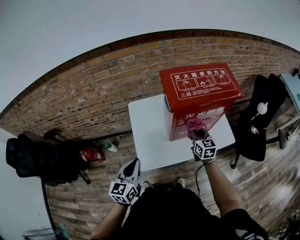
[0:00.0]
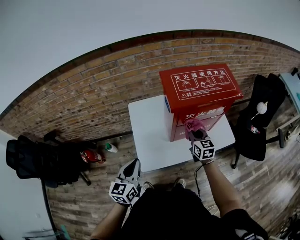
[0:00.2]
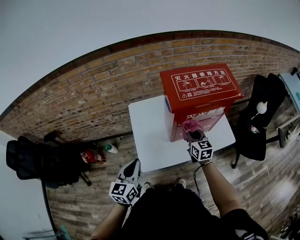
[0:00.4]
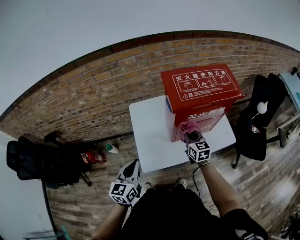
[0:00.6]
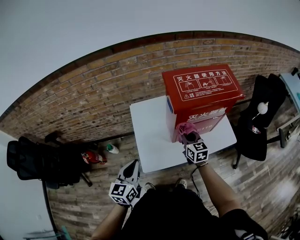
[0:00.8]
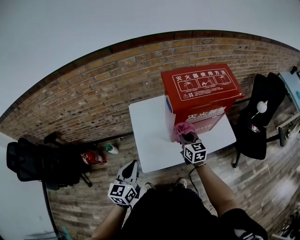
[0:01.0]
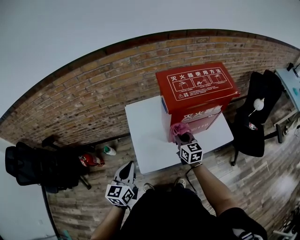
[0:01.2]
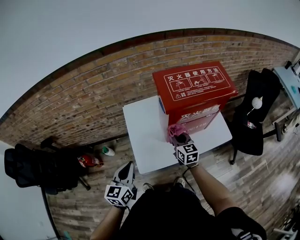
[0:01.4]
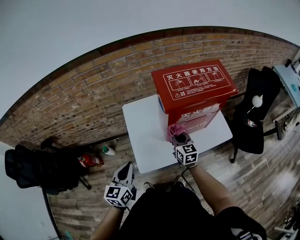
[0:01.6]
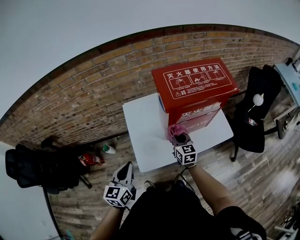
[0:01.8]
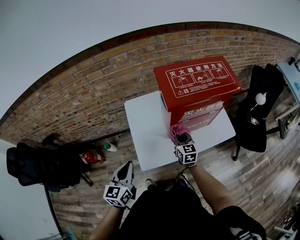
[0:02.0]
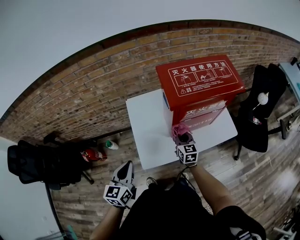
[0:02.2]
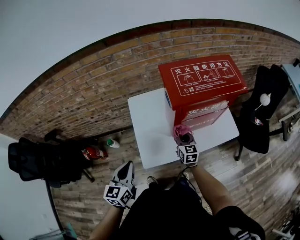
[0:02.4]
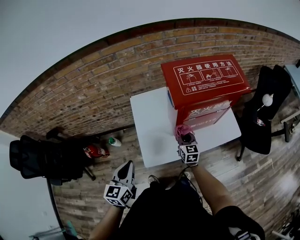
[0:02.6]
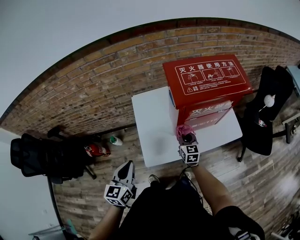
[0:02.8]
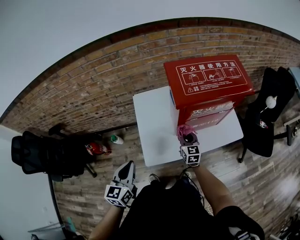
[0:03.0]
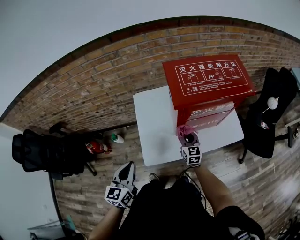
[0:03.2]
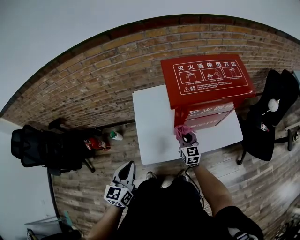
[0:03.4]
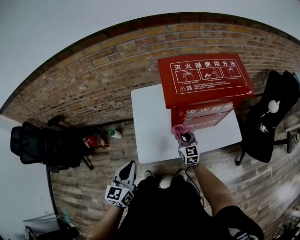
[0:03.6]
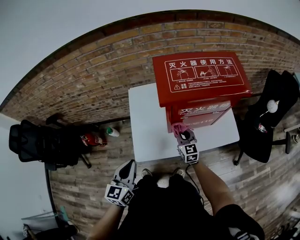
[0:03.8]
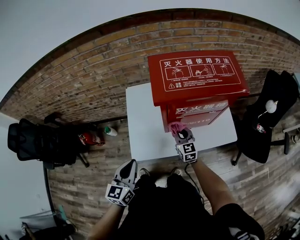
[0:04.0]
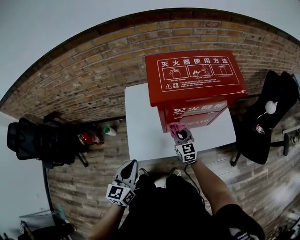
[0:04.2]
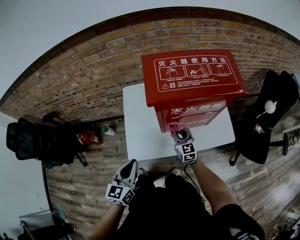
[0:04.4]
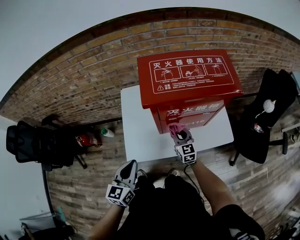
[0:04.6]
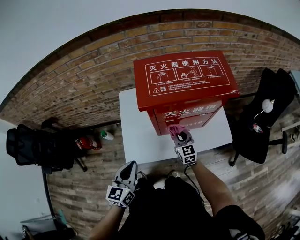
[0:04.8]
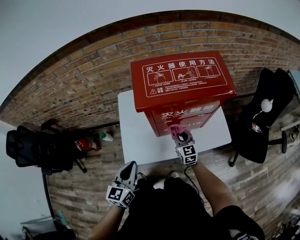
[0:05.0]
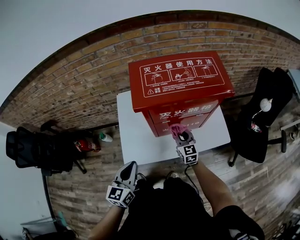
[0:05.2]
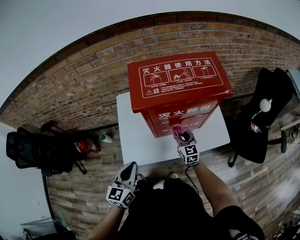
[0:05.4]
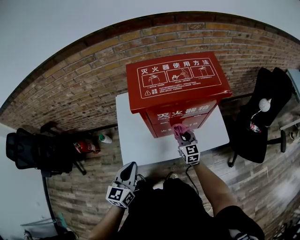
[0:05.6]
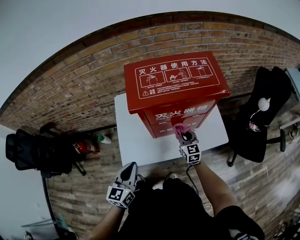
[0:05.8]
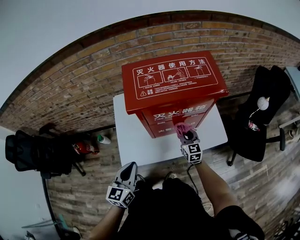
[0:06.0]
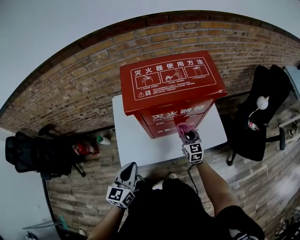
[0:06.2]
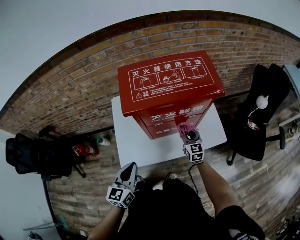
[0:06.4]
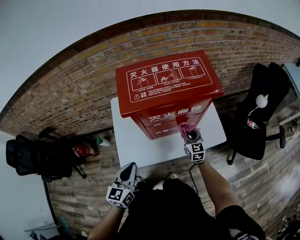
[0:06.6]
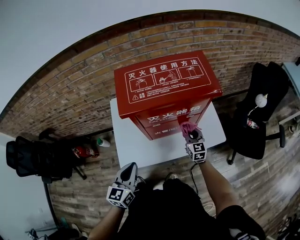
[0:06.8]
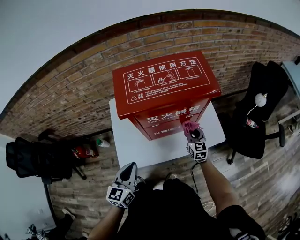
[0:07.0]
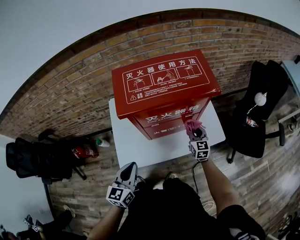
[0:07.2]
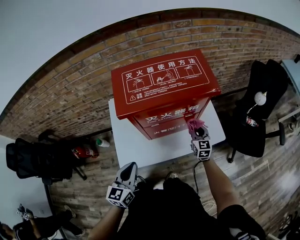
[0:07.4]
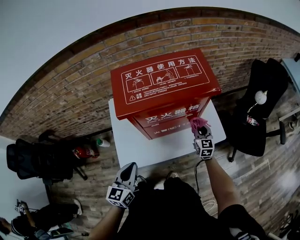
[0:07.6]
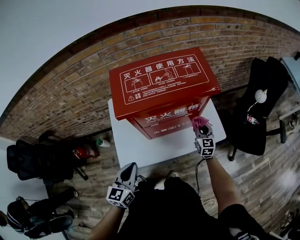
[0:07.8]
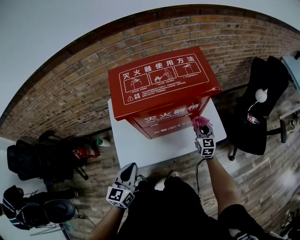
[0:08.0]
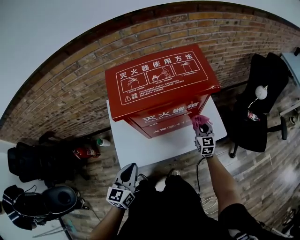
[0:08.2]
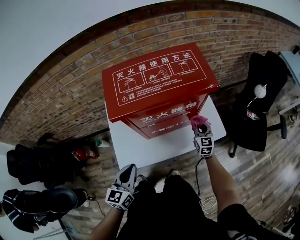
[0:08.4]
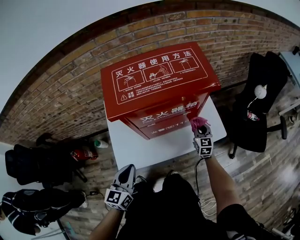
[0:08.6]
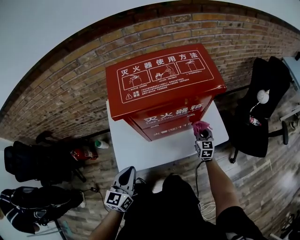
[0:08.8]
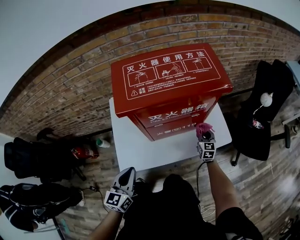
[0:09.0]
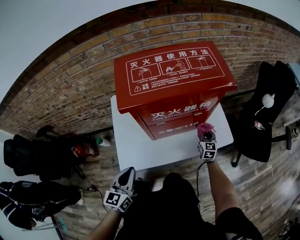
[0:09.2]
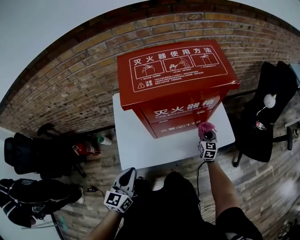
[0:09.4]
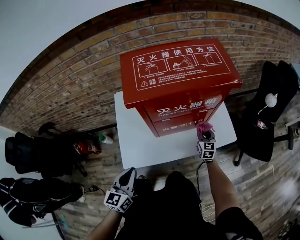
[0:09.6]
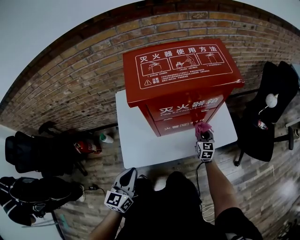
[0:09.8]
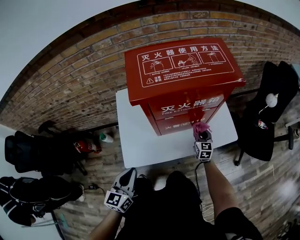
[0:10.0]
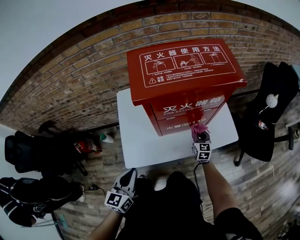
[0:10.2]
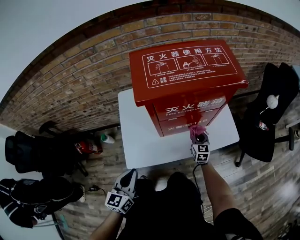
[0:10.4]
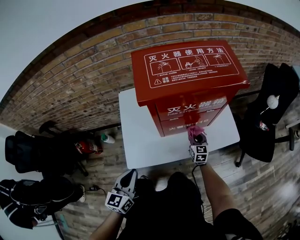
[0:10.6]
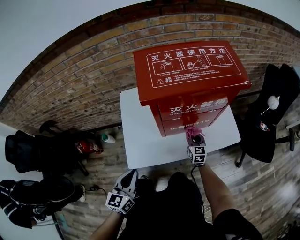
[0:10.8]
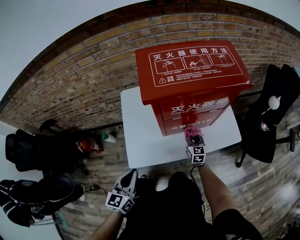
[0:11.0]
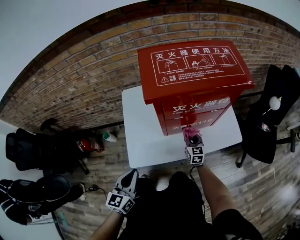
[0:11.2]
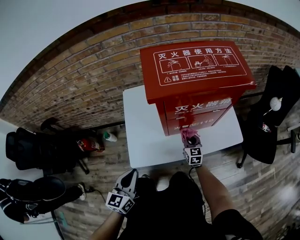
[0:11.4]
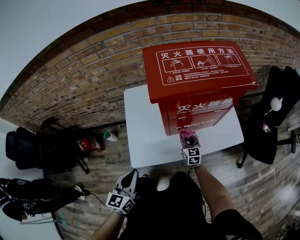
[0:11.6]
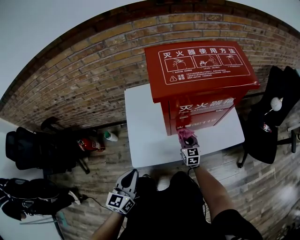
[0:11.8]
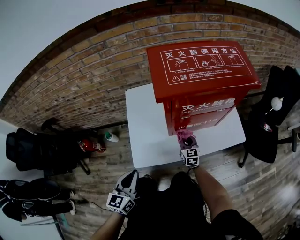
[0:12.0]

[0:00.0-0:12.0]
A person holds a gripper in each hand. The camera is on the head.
0:00.0 to 0:01.6: The right gripper moves to the left, approximately 10 cm.
0:01.6 to 0:03.0: The right gripper travels downward by approximately 10 cm.
0:03.0 to 0:04.4: The left gripper travels to the right by some 10 cm. The right gripper shifts approximately 5 cm to the right.
0:04.4 to 0:06.0: The right gripper travels to the right by some 10 cm, while the left gripper travels to the right by approximately 5 cm.
0:06.0 to 0:07.6: The right gripper heads to the right, covering approximately 10 cm.
0:07.6 to 0:09.0: The right gripper is displaced downward by about 10 cm.
0:09.0 to 0:10.4: The right gripper moves to the left, roughly 10 cm. The left gripper moves about 5 cm.
0:10.4 to 0:12.0: The right gripper moves to the left, approximately 15 cm.

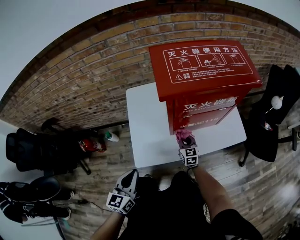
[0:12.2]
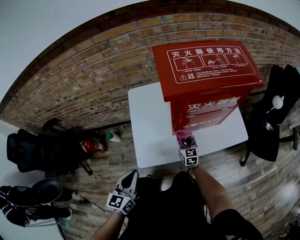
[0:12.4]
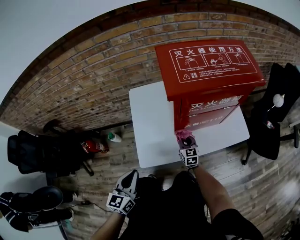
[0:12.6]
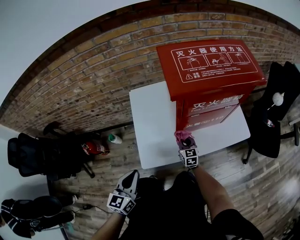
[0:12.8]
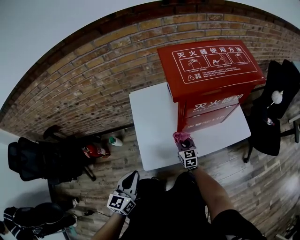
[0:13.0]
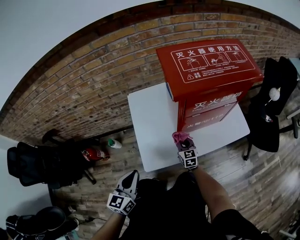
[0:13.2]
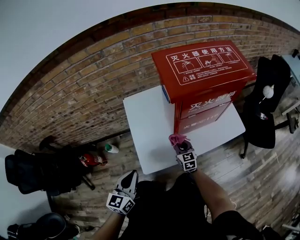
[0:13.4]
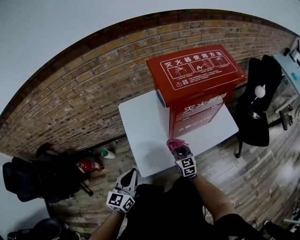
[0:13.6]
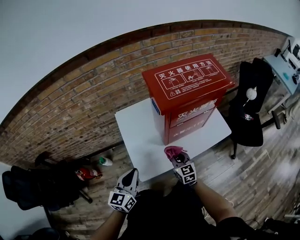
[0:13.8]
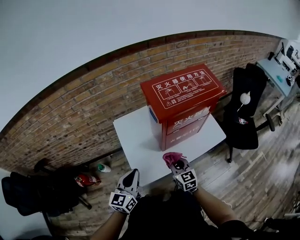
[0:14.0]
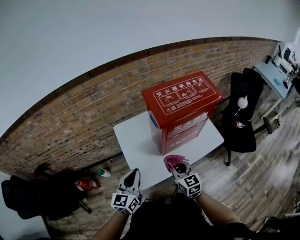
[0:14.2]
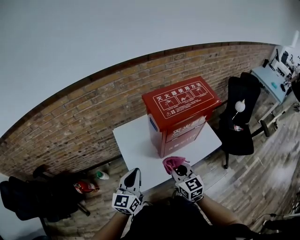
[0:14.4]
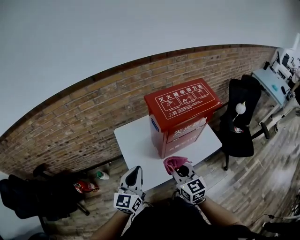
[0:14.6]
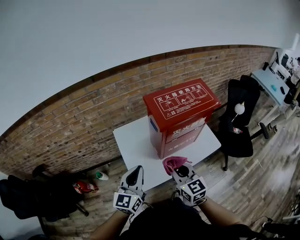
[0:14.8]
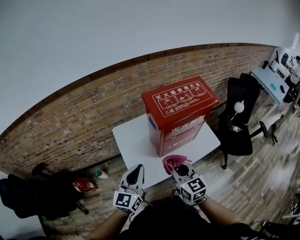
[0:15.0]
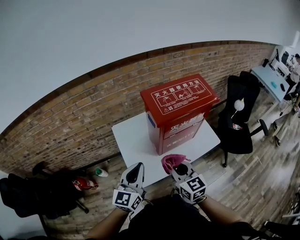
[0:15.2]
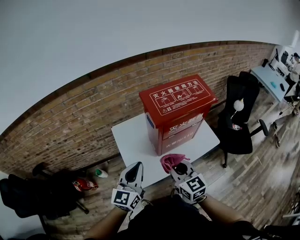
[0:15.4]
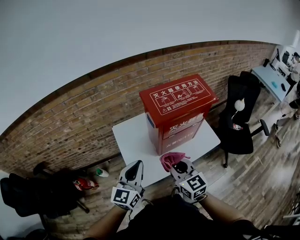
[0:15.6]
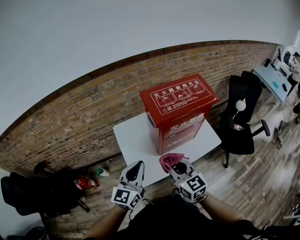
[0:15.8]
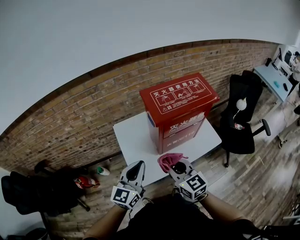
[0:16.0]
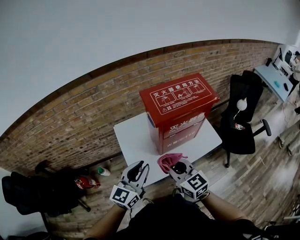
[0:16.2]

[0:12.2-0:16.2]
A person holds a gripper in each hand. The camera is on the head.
0:12.2 to 0:13.6: The right gripper heads upward, to the left and backward, covering roughly 10 cm. Meanwhile the left gripper moves some 5 cm.
0:13.6 to 0:14.8: The left gripper is displaced upward by approximately 15 cm. Meanwhile the right gripper is displaced upward by some 30 cm.
0:14.8 to 0:16.2: The grippers stay close to where they were, moving slightly.

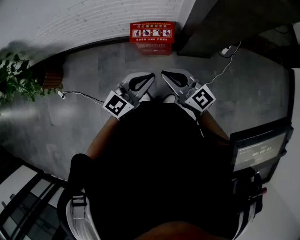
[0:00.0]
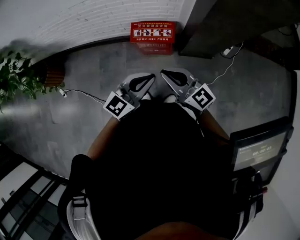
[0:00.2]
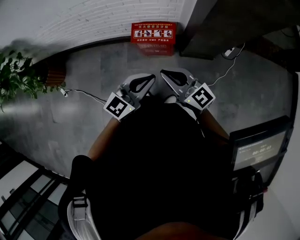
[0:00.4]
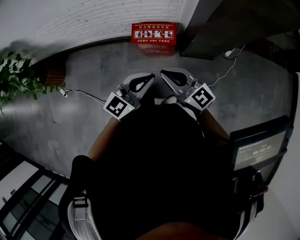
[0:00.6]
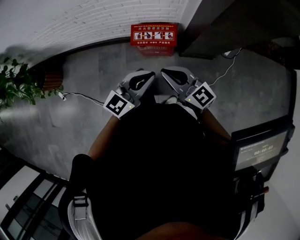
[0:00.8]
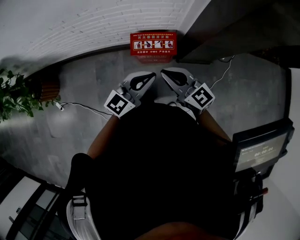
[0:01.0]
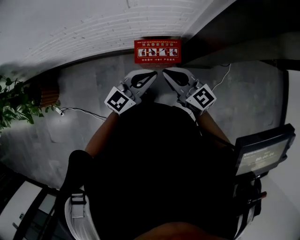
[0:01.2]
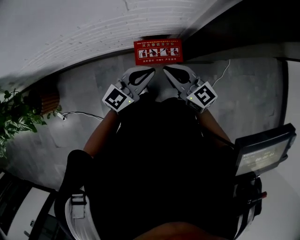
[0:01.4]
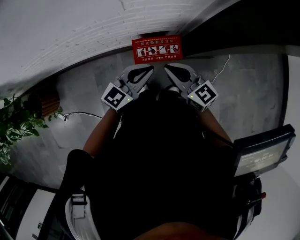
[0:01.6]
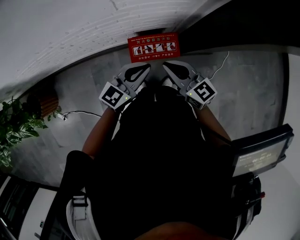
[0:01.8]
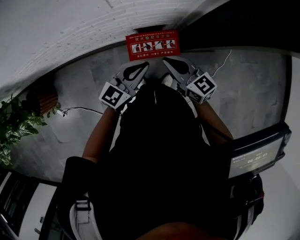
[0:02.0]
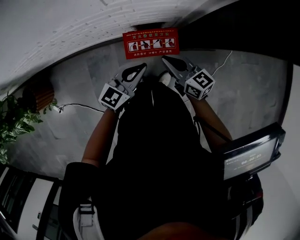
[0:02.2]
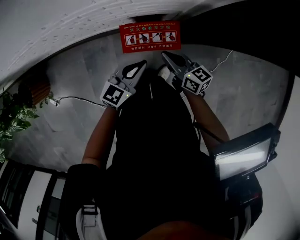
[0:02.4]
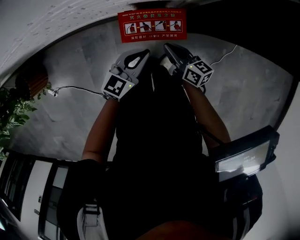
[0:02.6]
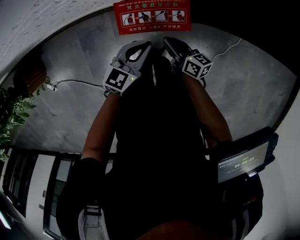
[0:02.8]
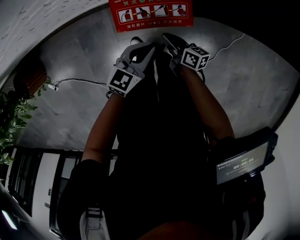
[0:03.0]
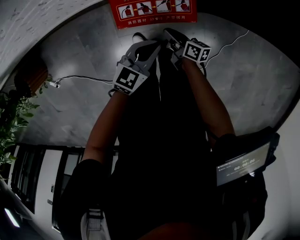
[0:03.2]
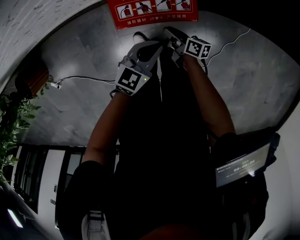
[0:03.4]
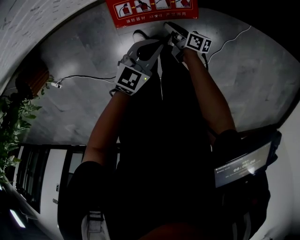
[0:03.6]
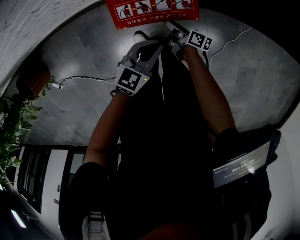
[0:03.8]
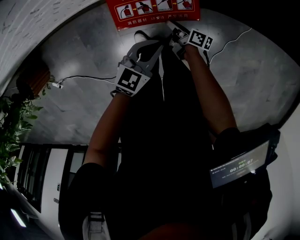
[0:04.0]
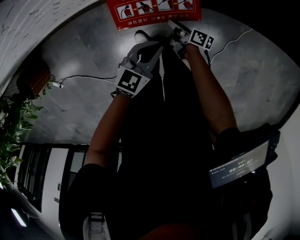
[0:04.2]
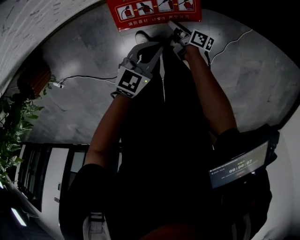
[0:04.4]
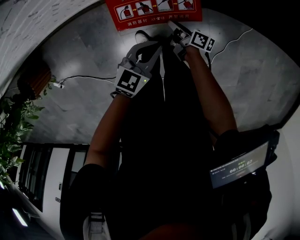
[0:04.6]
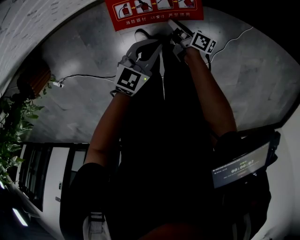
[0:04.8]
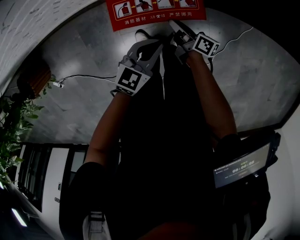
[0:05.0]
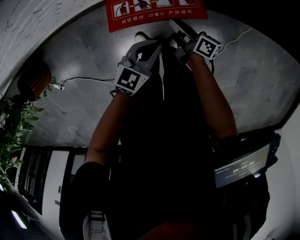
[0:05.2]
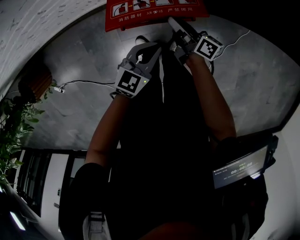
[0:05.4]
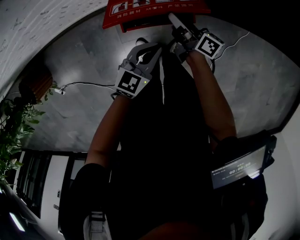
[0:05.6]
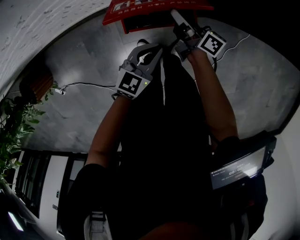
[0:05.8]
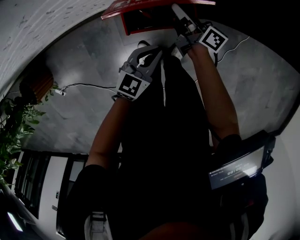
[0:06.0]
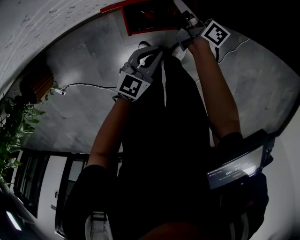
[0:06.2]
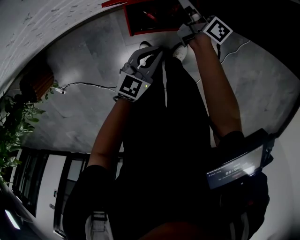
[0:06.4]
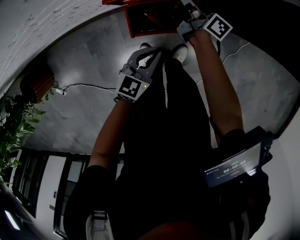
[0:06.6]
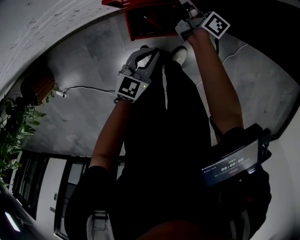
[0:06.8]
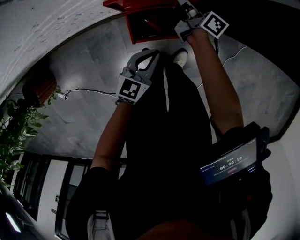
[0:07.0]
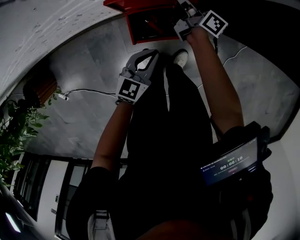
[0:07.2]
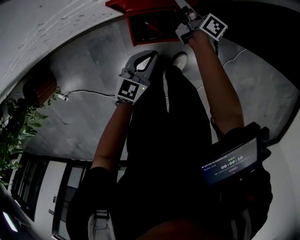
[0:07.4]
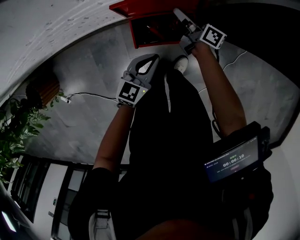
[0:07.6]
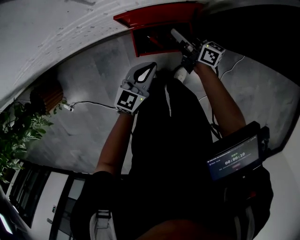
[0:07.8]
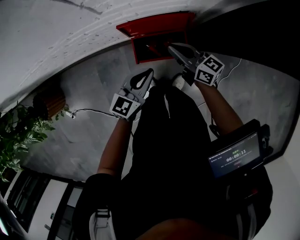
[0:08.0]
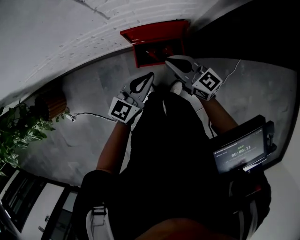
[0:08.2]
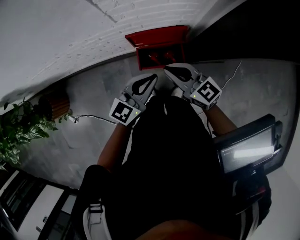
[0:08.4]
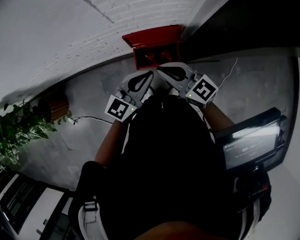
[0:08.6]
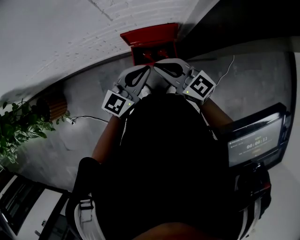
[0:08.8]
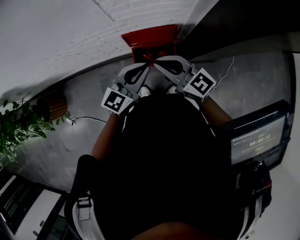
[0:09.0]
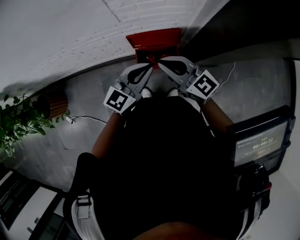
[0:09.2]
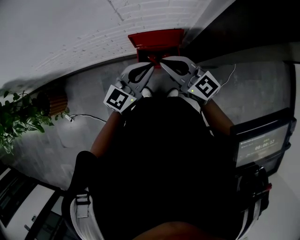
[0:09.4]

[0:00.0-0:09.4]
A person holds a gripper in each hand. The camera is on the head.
0:00.0 to 0:01.6: The left gripper goes roughly 30 cm forward and to the left. The right gripper travels forward by roughly 25 cm.
0:01.6 to 0:03.2: Both grippers travel together downward, about 40 cm. The right gripper rolls clockwise, seen from behind, by about 60 degrees. The left gripper changes its angle by some 20 degrees.
0:04.8 to 0:06.2: The right gripper travels upward and forward by roughly 25 cm, and changes its angle by some 30 degrees.
0:06.2 to 0:07.8: Both grippers move upward, approximately 5 cm. The right gripper reaches some 5 cm forward, then returns.
0:07.8 to 0:09.4: The left gripper moves upward, approximately 30 cm. Meanwhile the right gripper heads upward and backward, covering some 40 cm, and twists about 50 degrees counterclockwise, seen from behind.
